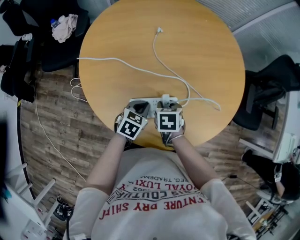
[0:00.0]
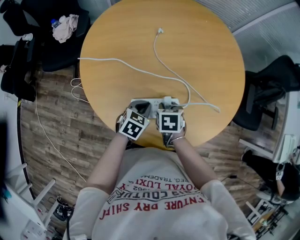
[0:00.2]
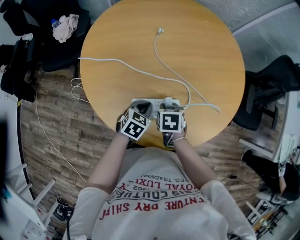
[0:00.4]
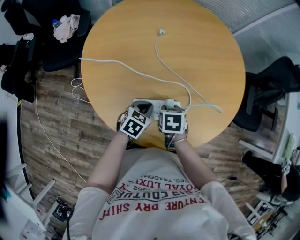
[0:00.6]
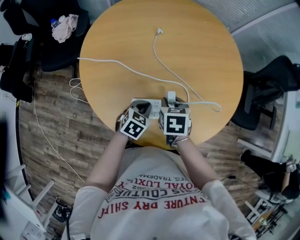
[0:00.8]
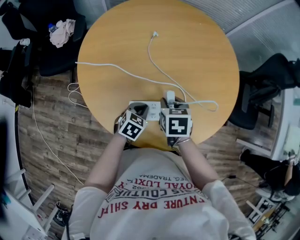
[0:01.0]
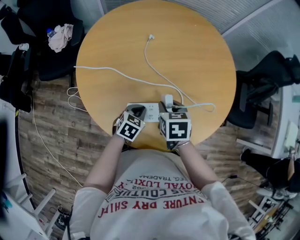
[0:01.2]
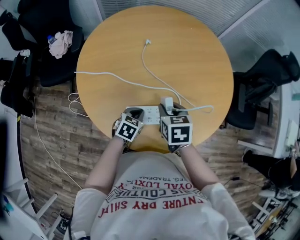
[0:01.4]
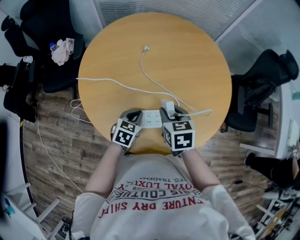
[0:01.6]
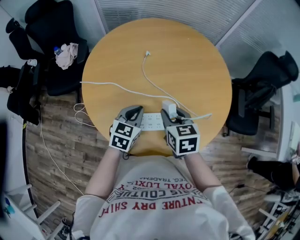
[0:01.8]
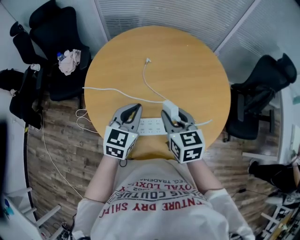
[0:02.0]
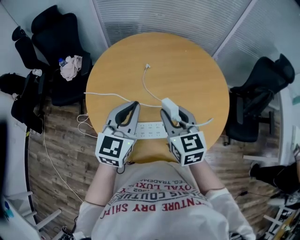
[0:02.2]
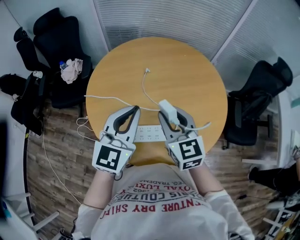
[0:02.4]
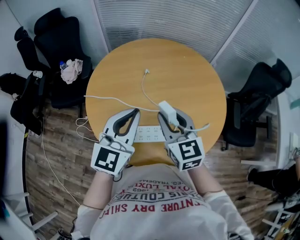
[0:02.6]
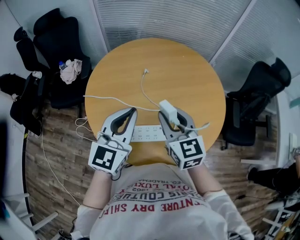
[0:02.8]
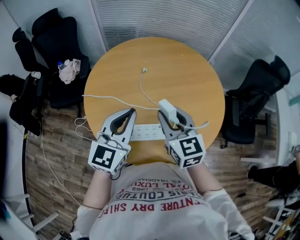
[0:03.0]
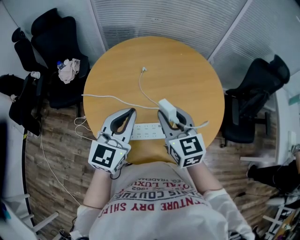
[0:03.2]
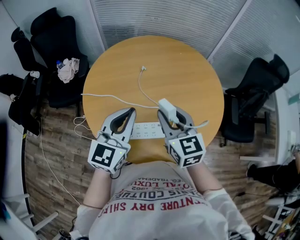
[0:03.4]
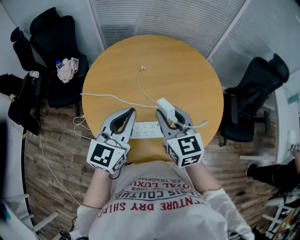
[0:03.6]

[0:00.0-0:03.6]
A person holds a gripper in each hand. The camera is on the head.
0.0 to 1.8 s: The grippers both shift upward by roughly 15 cm. The right gripper changes its angle by about 30 degrees.
1.8 to 3.6 s: The left gripper moves upward, roughly 20 cm, and changes its angle by approximately 30 degrees; the right gripper travels upward by some 10 cm, and turns by some 30 degrees.

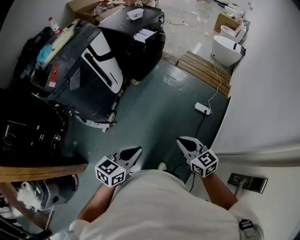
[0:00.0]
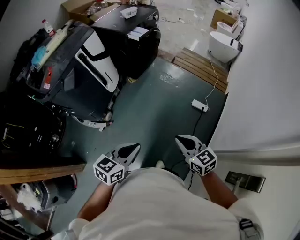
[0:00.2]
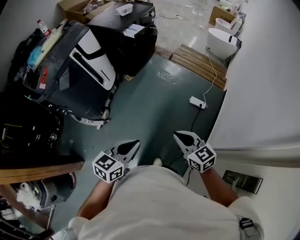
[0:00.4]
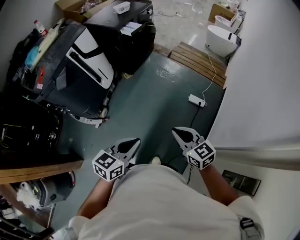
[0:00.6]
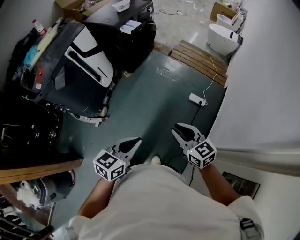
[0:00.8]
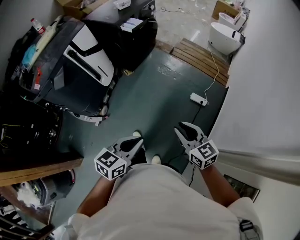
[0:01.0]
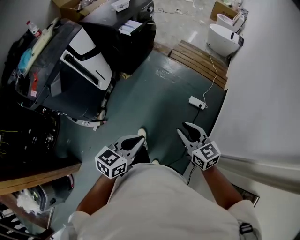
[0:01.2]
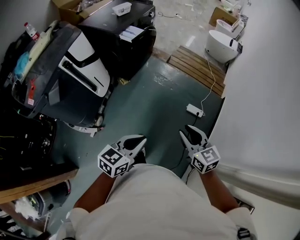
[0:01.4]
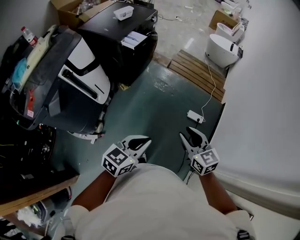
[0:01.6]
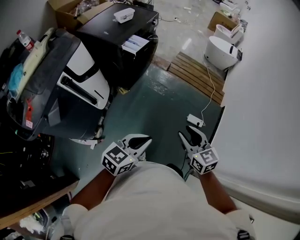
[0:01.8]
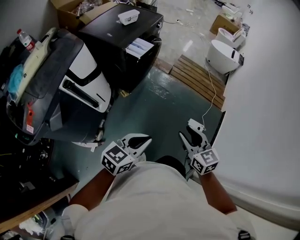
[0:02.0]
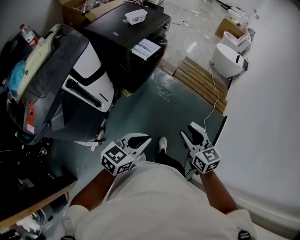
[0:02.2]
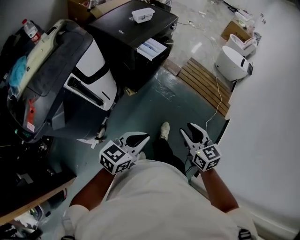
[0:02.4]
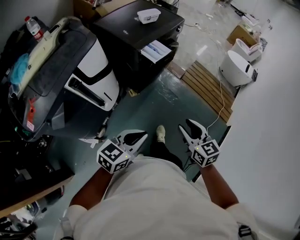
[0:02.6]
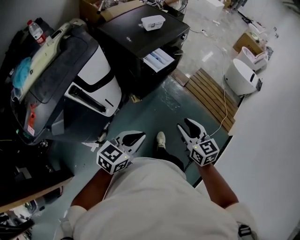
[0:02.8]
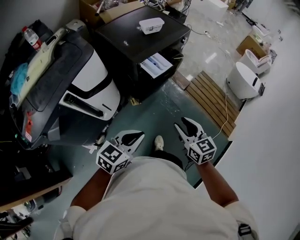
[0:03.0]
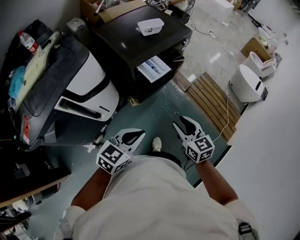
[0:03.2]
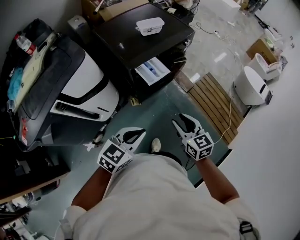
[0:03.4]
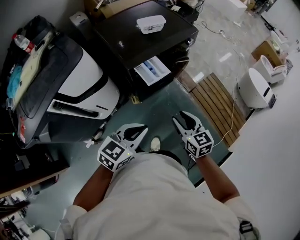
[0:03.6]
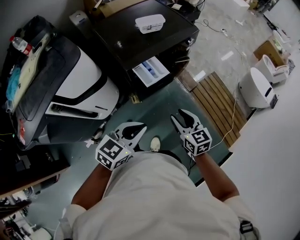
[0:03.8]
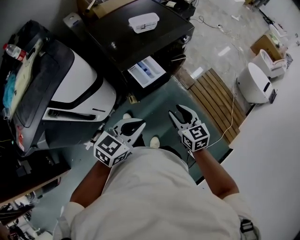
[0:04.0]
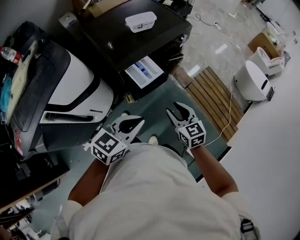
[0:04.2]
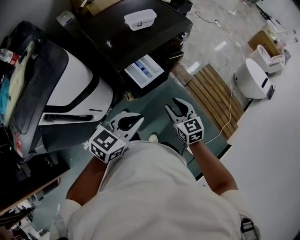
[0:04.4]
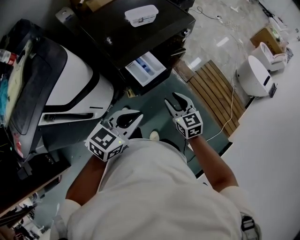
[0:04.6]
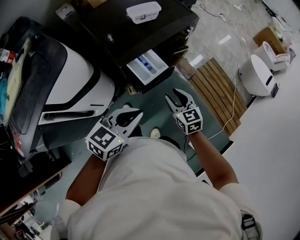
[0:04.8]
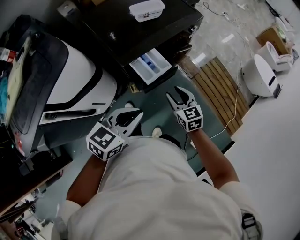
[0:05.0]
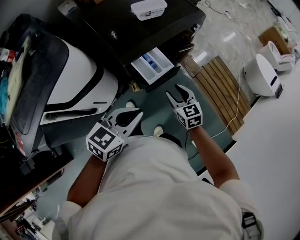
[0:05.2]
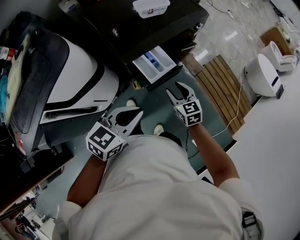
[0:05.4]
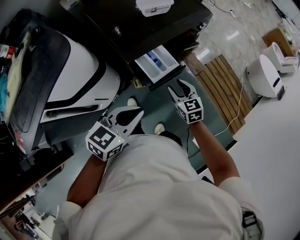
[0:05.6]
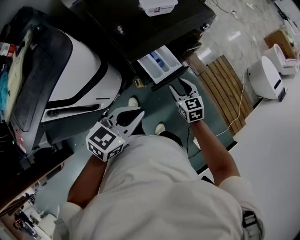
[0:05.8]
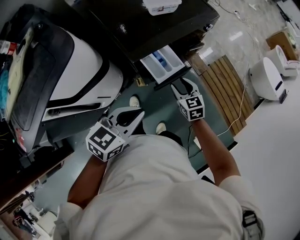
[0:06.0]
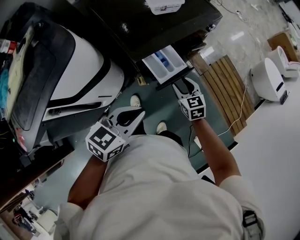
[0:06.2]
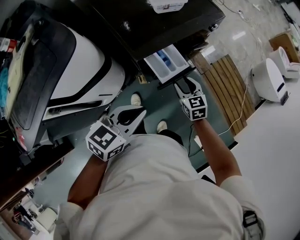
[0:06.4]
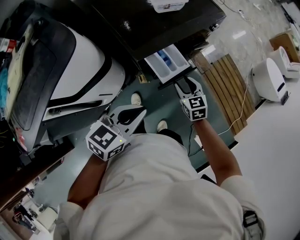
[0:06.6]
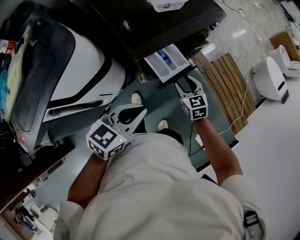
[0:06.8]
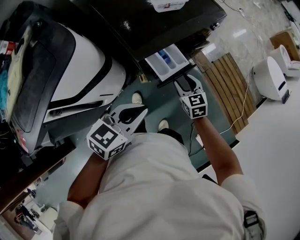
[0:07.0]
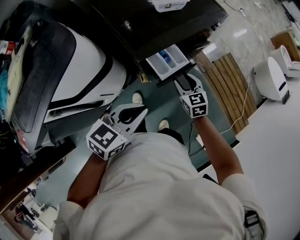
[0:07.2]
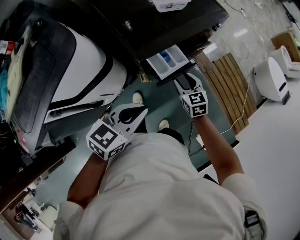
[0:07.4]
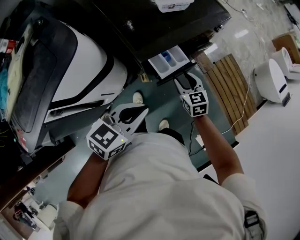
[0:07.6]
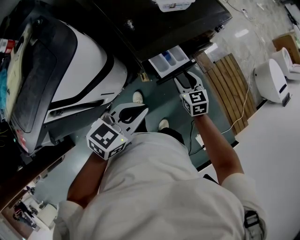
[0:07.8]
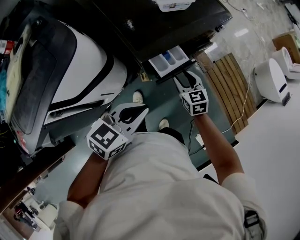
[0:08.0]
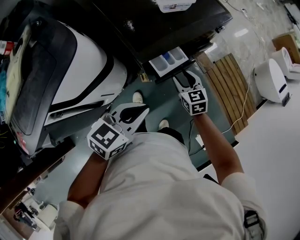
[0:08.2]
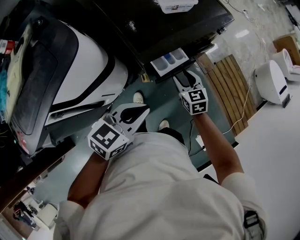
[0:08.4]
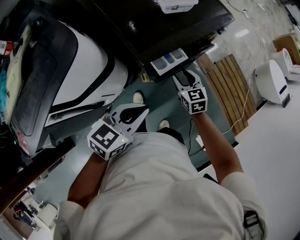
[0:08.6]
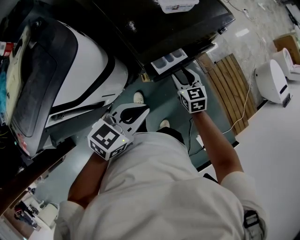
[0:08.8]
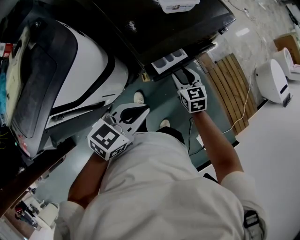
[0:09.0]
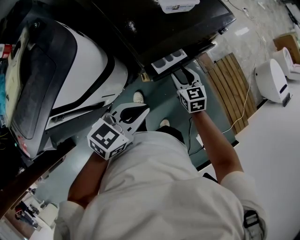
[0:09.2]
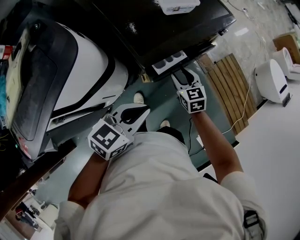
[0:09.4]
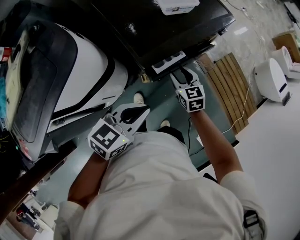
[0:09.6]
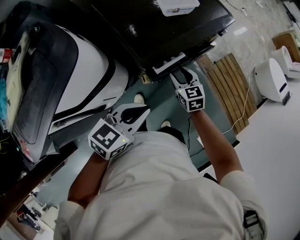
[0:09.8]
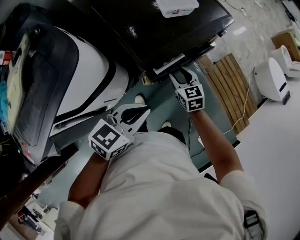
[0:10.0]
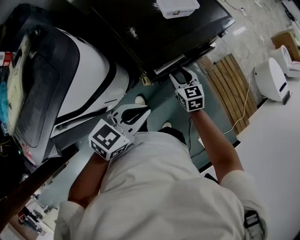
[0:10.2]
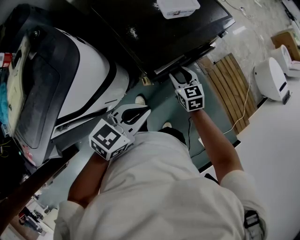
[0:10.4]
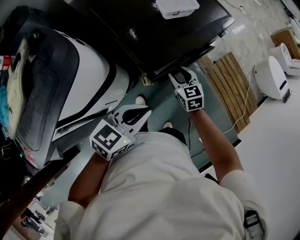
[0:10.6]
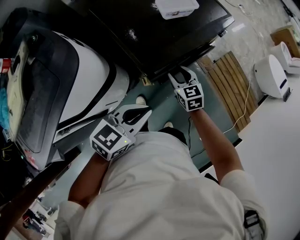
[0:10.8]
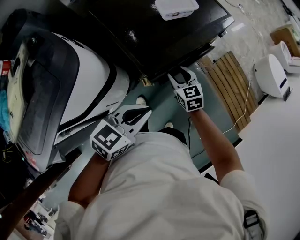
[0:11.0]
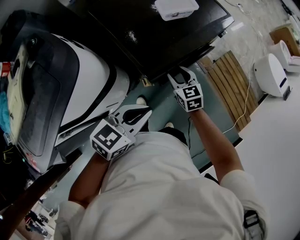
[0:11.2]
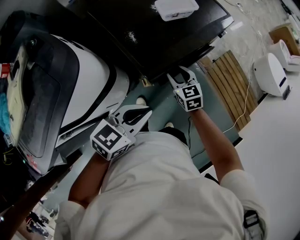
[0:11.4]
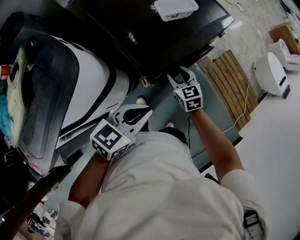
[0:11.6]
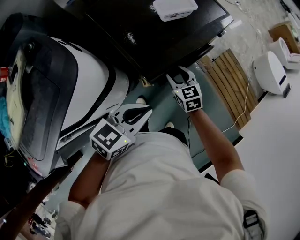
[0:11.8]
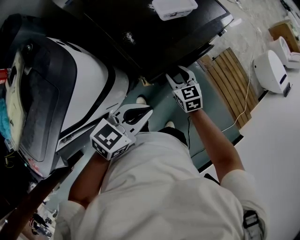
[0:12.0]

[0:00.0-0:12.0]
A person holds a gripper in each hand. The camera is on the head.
0.0 to 1.6 s: The grippers both shift forward by some 25 cm. The right gripper opens.
1.6 to 3.0 s: The two grippers go roughly 35 cm forward and to the left.
3.0 to 4.4 s: Both grippers move forward, some 20 cm.
4.4 to 6.0 s: The left gripper moves to the left, approximately 5 cm, while the right gripper heads forward, downward and to the left, covering approximately 15 cm.
6.0 to 7.6 s: The grippers move only a little.
7.6 to 9.0 s: The grippers stay close to where they were, moving slightly.
9.0 to 12.0 s: There are only small adjustments of the grippers.

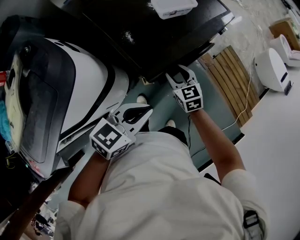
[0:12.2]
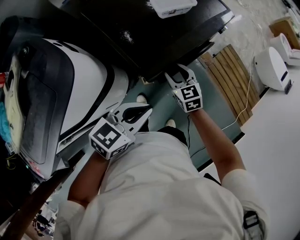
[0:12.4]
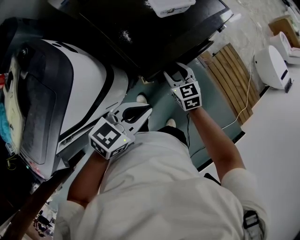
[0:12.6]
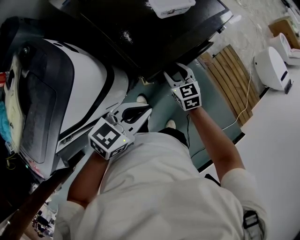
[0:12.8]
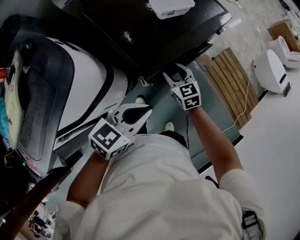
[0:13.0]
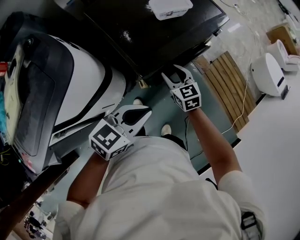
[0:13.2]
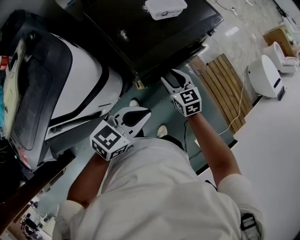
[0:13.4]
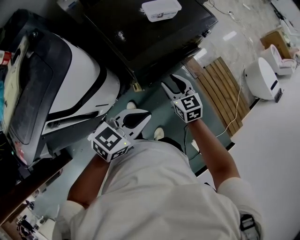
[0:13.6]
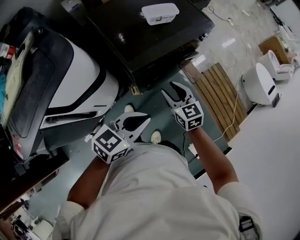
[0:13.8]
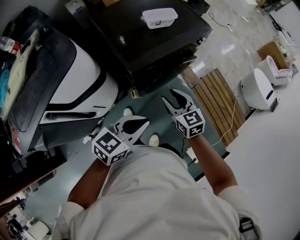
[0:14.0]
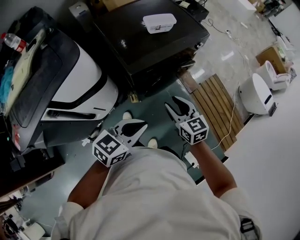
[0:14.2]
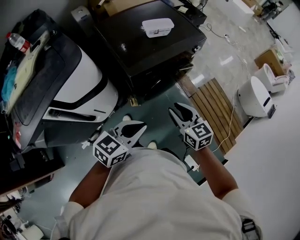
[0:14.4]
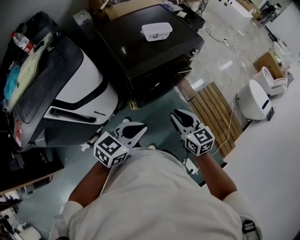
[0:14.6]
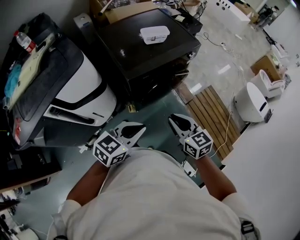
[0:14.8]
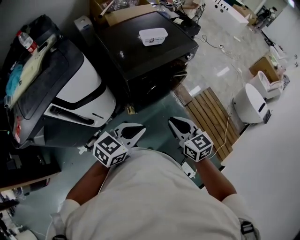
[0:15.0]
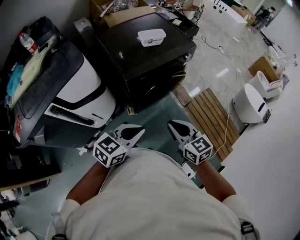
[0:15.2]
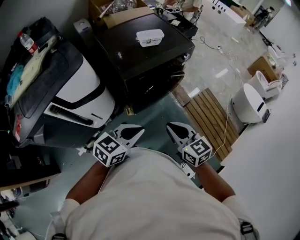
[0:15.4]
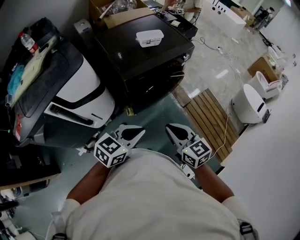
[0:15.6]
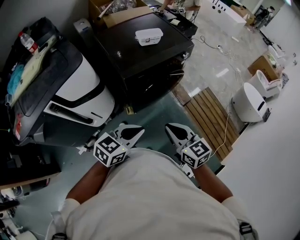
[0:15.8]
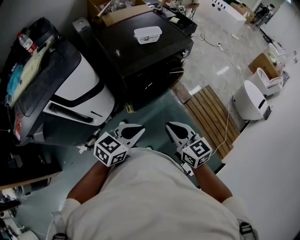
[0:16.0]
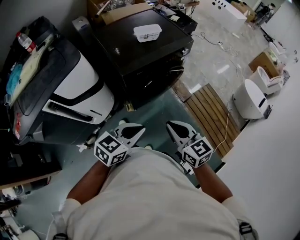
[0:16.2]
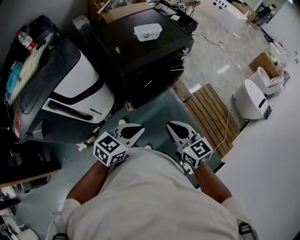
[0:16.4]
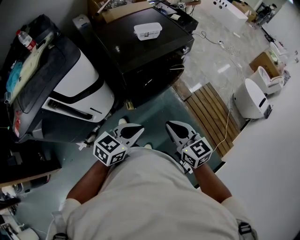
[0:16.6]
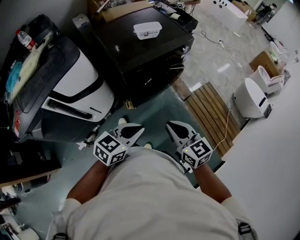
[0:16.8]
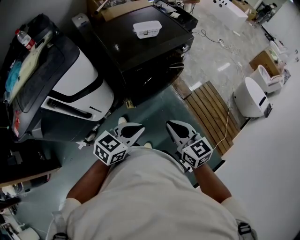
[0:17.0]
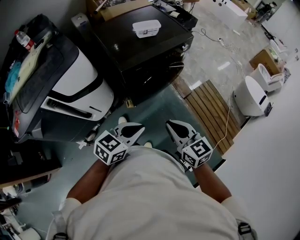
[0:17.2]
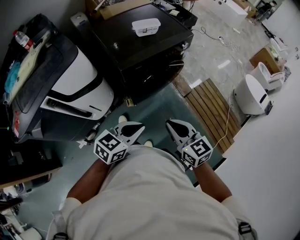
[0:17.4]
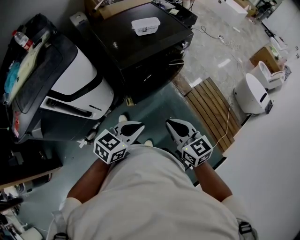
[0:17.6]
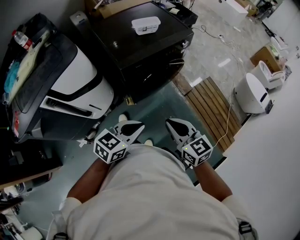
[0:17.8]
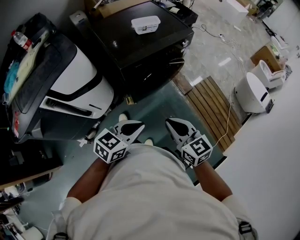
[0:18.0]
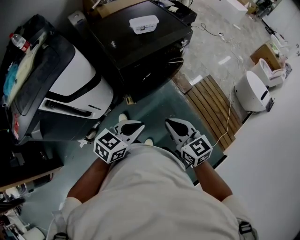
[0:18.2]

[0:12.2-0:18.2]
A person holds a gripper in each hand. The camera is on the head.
12.2 to 13.8 s: The right gripper heads backward, to the right and upward, covering approximately 15 cm. Meanwhile the left gripper is displaced to the right and backward by some 10 cm.
13.8 to 15.2 s: The right gripper shifts some 20 cm backward, upward and to the right, and closes up. Meanwhile the left gripper is displaced backward by approximately 10 cm.
15.2 to 18.2 s: The grippers stay close to where they were, moving slightly.

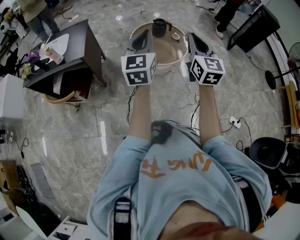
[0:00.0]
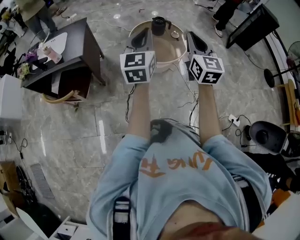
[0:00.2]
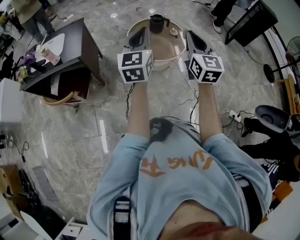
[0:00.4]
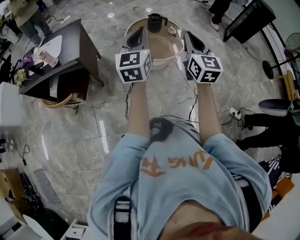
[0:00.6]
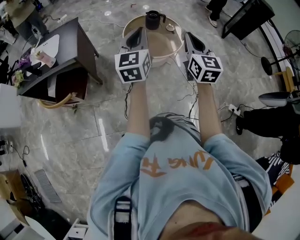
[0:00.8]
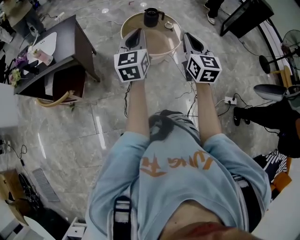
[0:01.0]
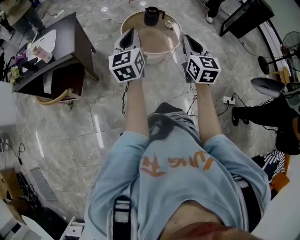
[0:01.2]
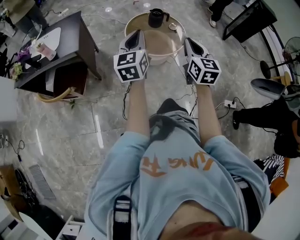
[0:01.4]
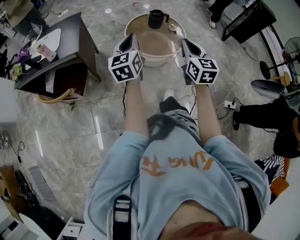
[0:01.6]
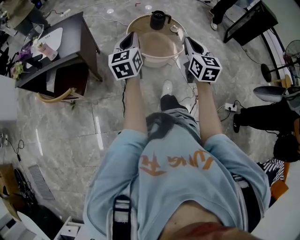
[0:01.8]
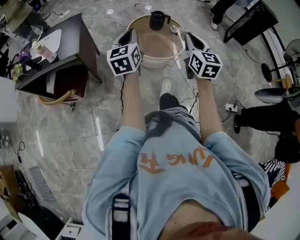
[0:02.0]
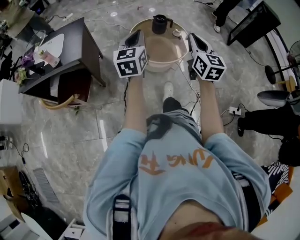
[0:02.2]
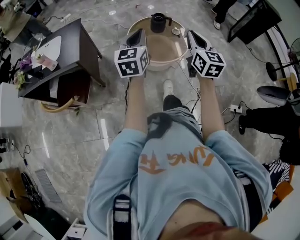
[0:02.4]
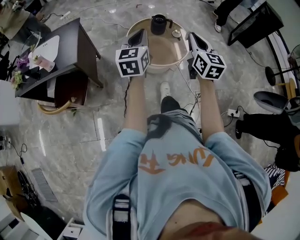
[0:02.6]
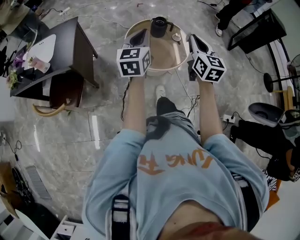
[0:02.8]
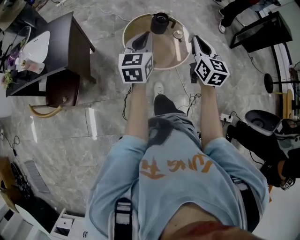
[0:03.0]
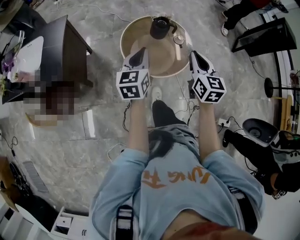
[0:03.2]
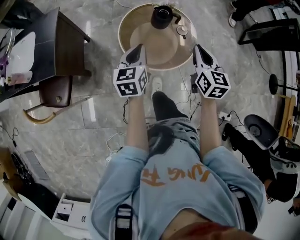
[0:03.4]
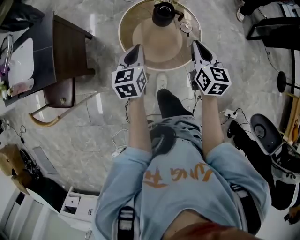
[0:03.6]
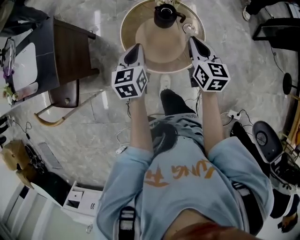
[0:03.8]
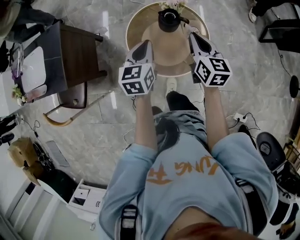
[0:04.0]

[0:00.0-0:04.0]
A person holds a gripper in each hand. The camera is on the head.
0.0 to 1.4 s: The right gripper is displaced downward by some 10 cm; the left gripper moves downward and to the left, some 10 cm.
1.4 to 2.6 s: Both grippers travel together forward, about 10 cm.
2.6 to 4.0 s: Both grippers move forward and downward, some 35 cm. The left gripper rotates some 20 degrees, while the right gripper swivels approximately 20 degrees.
